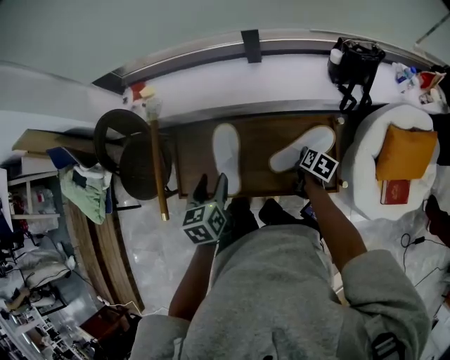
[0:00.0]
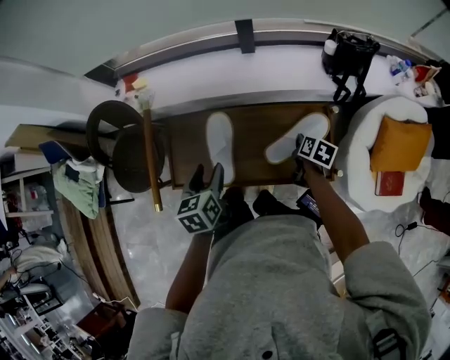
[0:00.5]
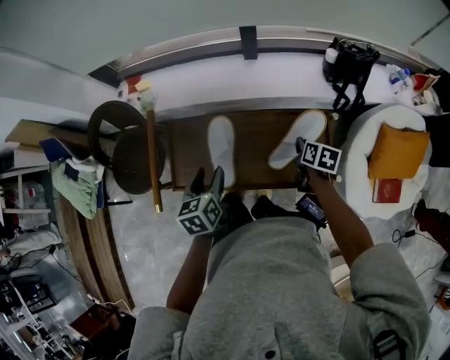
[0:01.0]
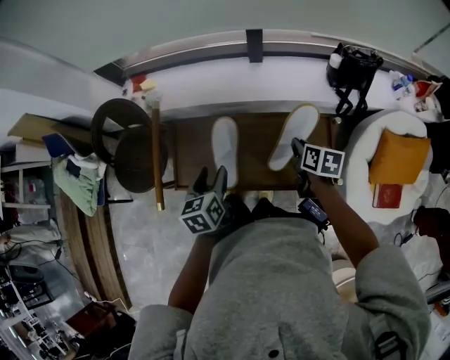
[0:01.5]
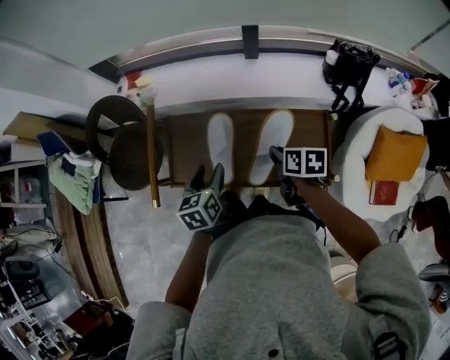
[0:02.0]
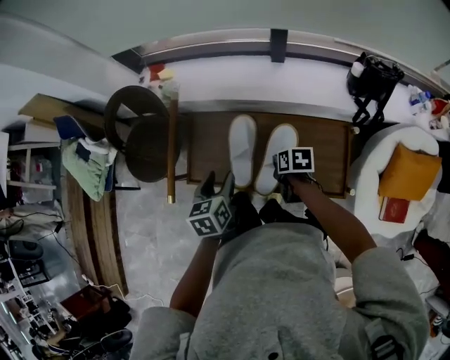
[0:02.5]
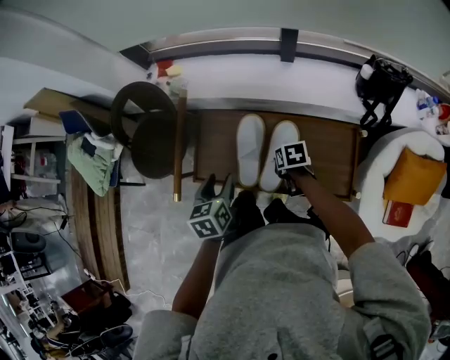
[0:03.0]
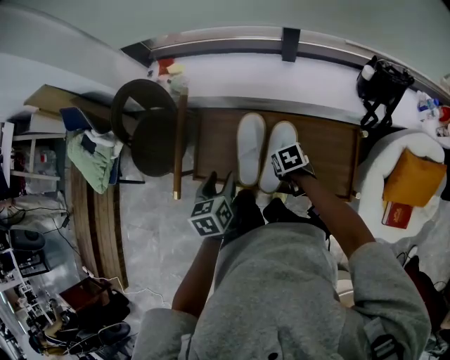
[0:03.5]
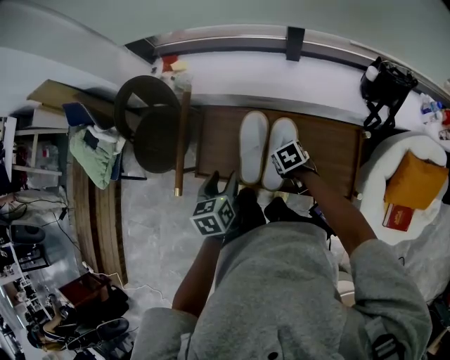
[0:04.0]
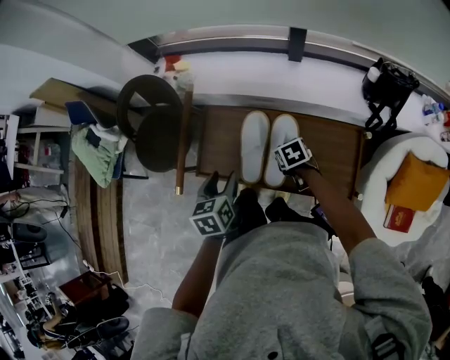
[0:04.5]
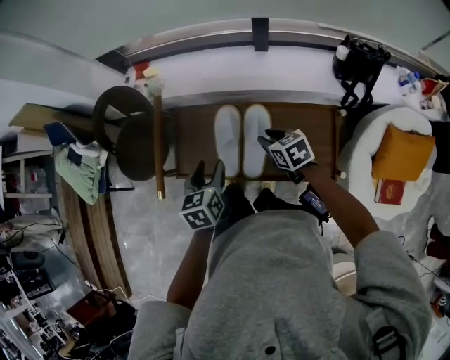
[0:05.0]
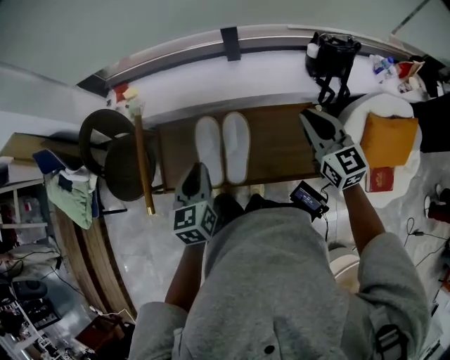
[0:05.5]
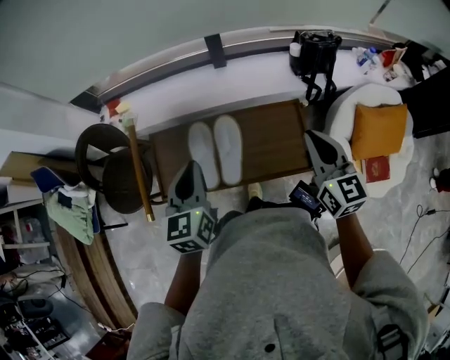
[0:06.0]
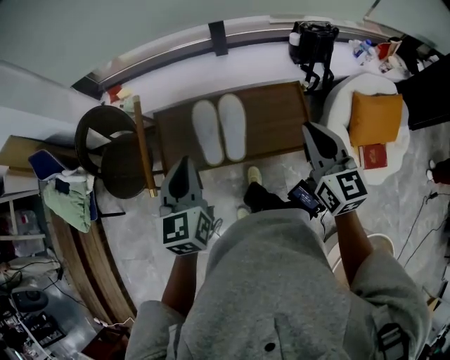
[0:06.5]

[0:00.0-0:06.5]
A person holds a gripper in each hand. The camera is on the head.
0:00.0 to 0:02.0: The right gripper heads to the left and upward, covering some 20 cm, and rotates roughly 30 degrees.
0:02.0 to 0:04.5: The right gripper shifts some 15 cm downward, forward and to the left, and changes its angle by approximately 40 degrees. The left gripper moves to the left, about 5 cm.
0:04.5 to 0:06.5: The left gripper shifts approximately 20 cm upward, rotates about 30 degrees, and closes; the right gripper travels upward by about 35 cm, and points its fingers approximately 50 degrees further upward.

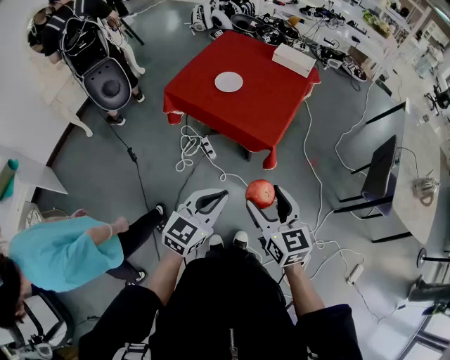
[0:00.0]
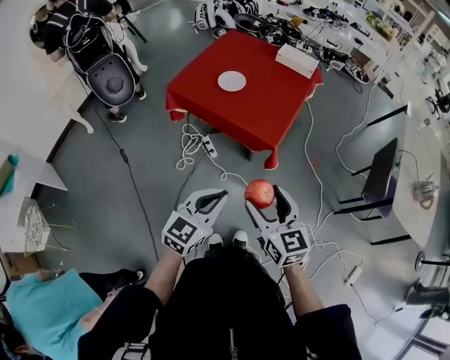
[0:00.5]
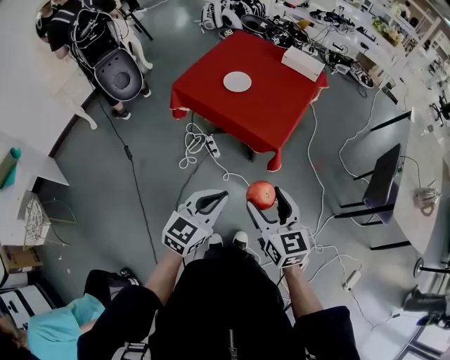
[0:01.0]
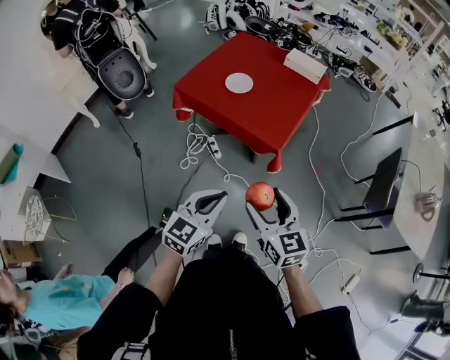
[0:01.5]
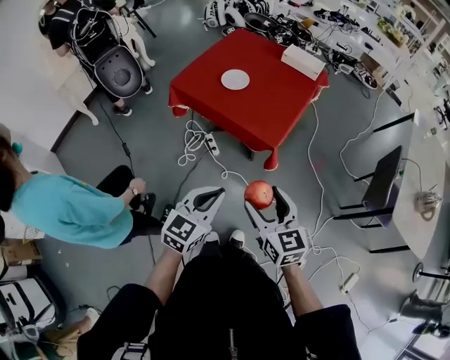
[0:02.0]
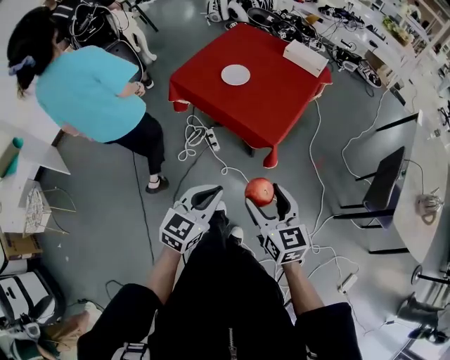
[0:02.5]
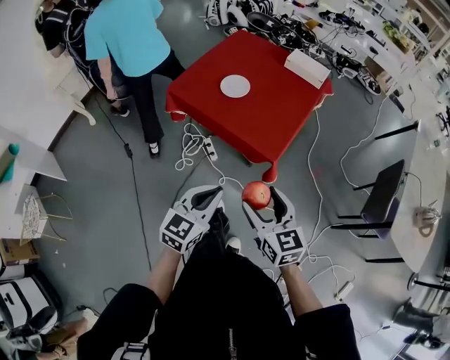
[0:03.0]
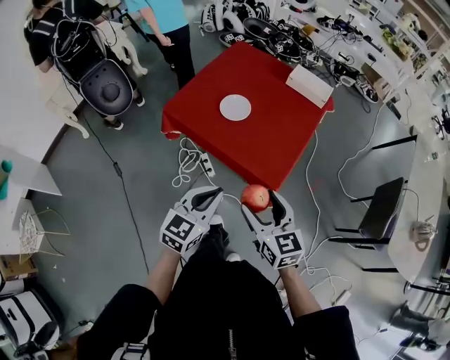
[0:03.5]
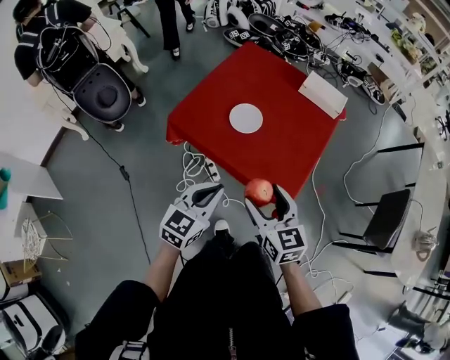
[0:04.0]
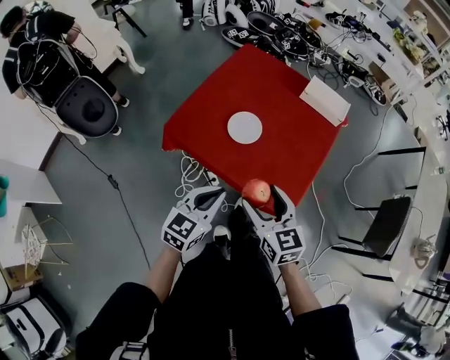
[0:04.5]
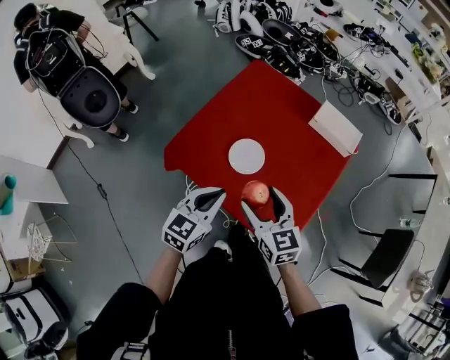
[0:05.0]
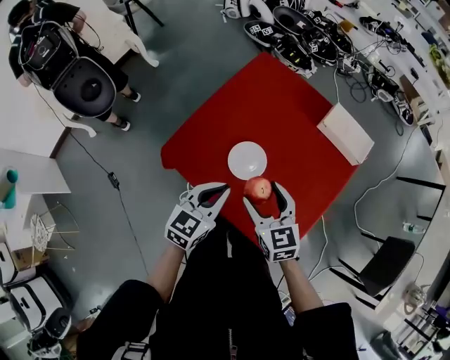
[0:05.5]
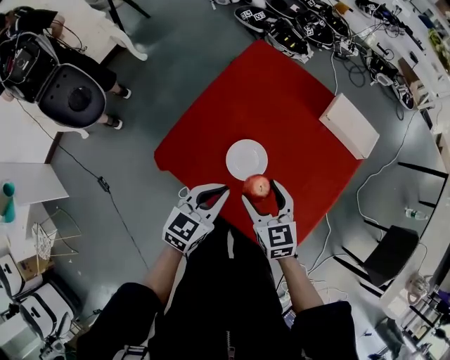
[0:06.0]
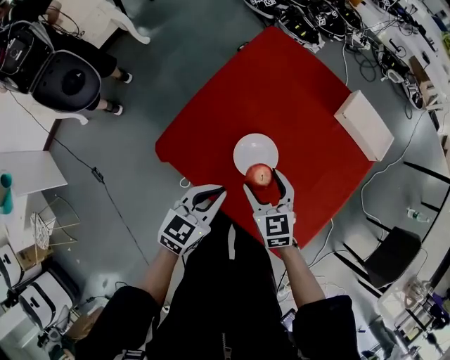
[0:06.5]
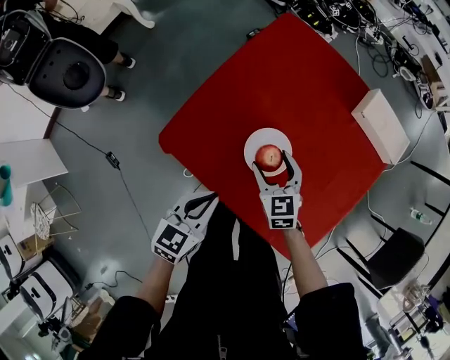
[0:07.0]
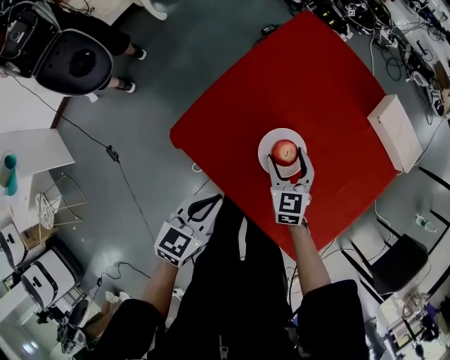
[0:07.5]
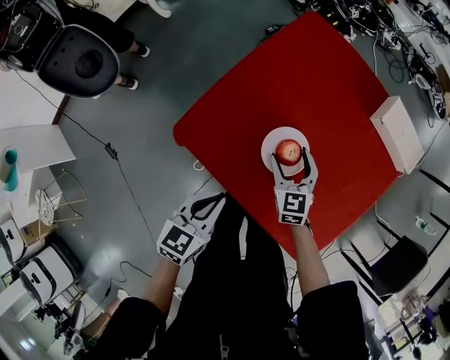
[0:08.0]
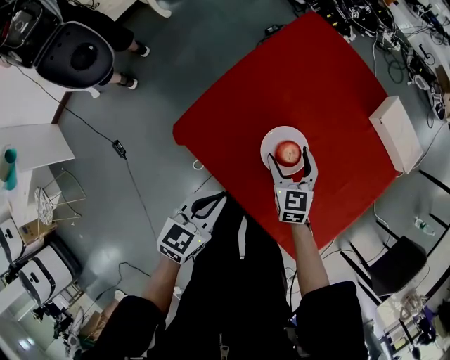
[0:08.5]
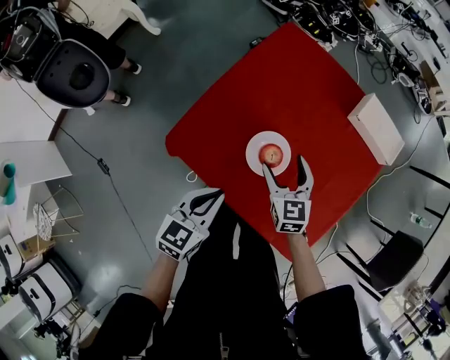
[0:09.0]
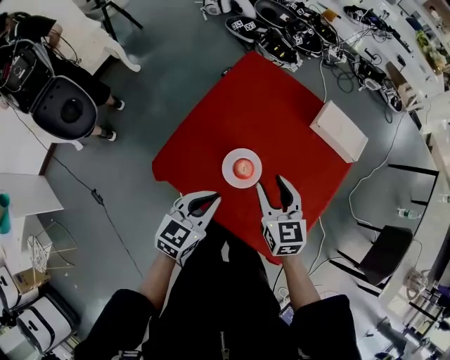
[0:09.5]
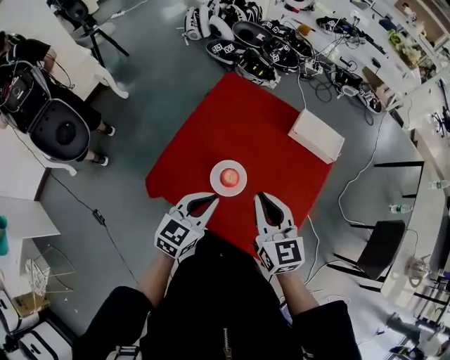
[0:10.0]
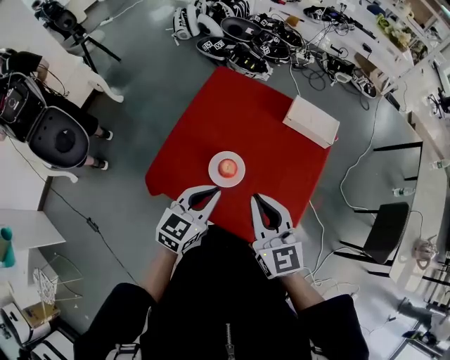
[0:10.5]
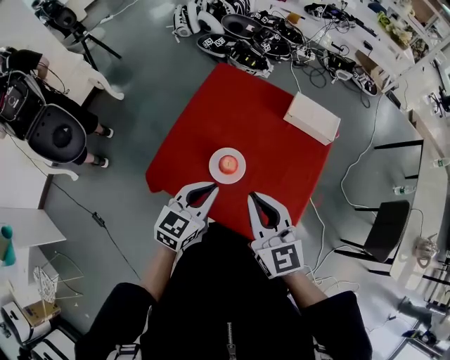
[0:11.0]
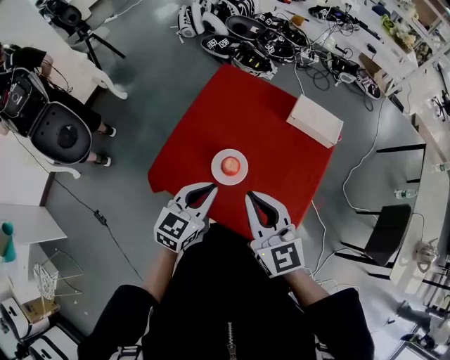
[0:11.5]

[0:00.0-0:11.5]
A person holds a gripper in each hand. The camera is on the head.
0:00.0 to 0:02.0: The grippers make only small movements.
0:02.0 to 0:04.0: The two grippers go about 30 cm forward.
0:04.0 to 0:06.0: The two grippers go some 30 cm forward.
0:06.0 to 0:07.5: The right gripper shifts approximately 15 cm downward and forward. The left gripper moves to the left and downward, roughly 10 cm.
0:07.5 to 0:09.5: The right gripper is displaced upward by approximately 20 cm. The left gripper shifts approximately 10 cm upward and to the right.
0:09.5 to 0:11.5: The right gripper is displaced upward and backward by about 15 cm, and closes its fingers. Meanwhile the left gripper travels upward by some 5 cm.

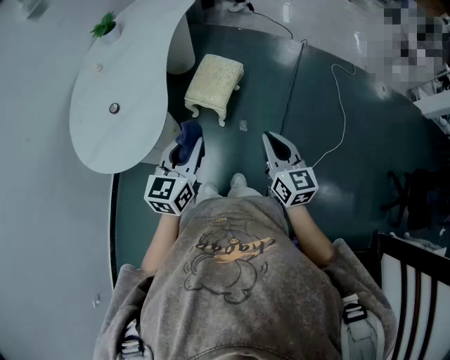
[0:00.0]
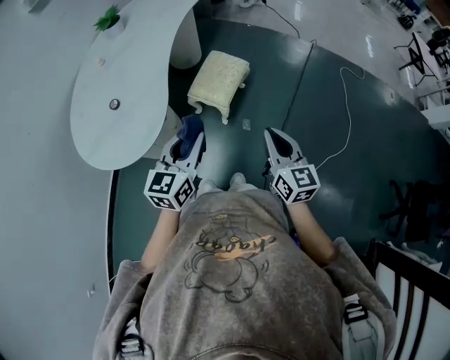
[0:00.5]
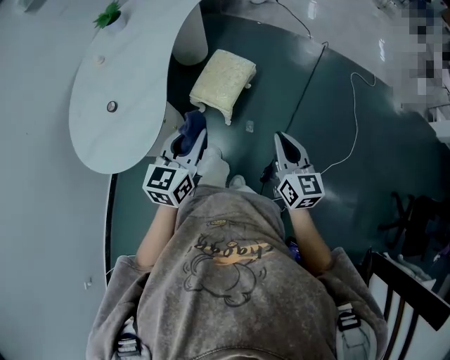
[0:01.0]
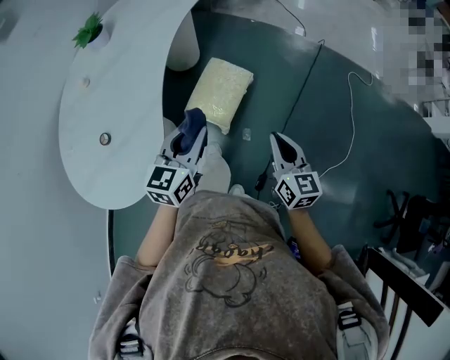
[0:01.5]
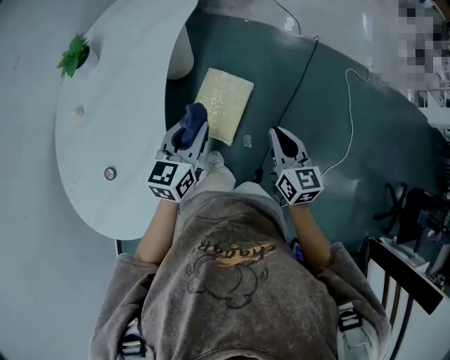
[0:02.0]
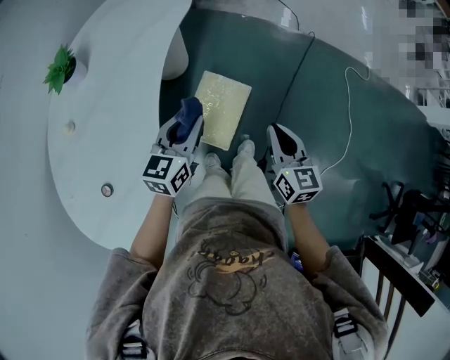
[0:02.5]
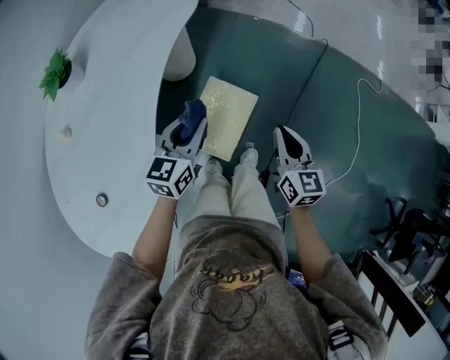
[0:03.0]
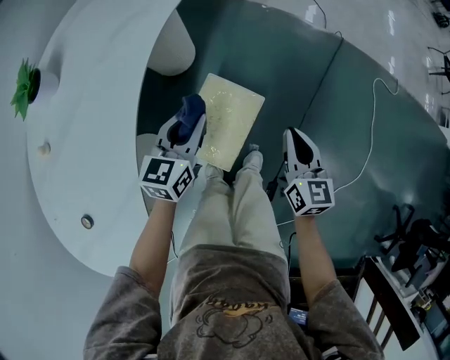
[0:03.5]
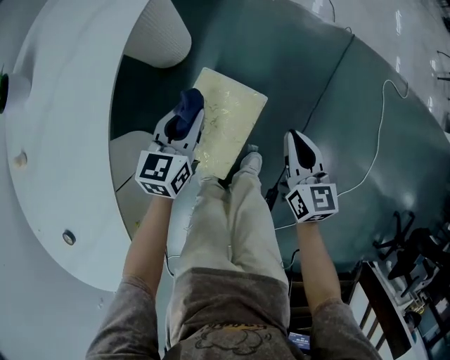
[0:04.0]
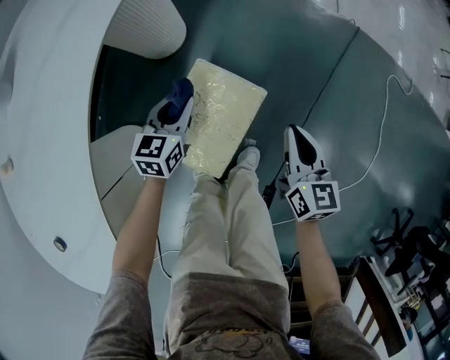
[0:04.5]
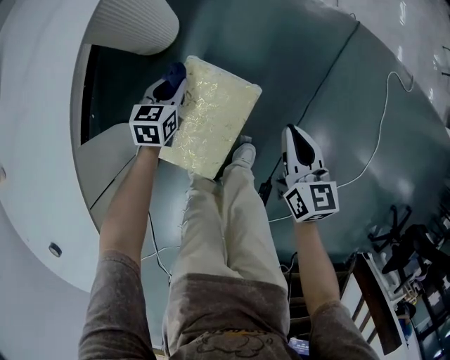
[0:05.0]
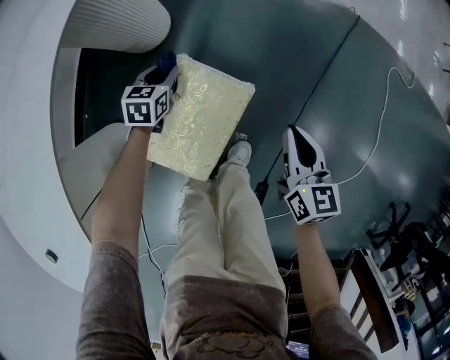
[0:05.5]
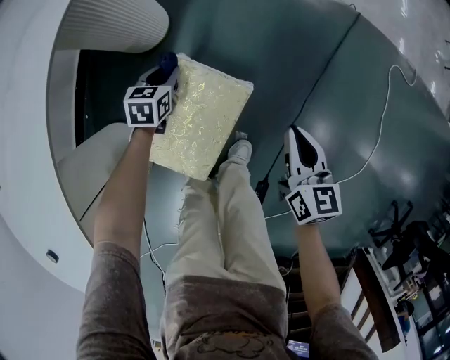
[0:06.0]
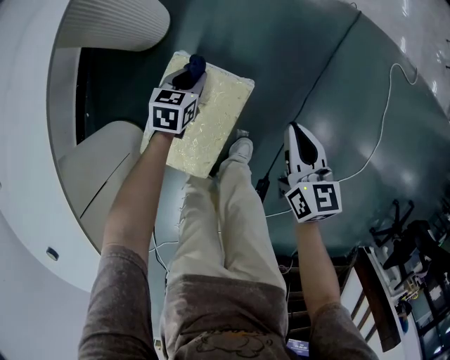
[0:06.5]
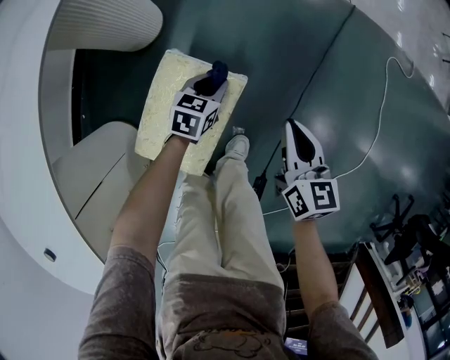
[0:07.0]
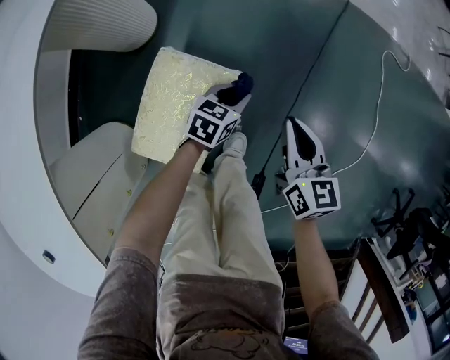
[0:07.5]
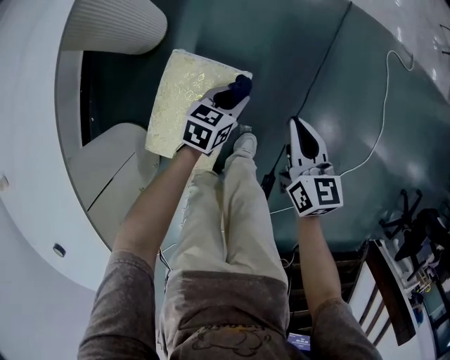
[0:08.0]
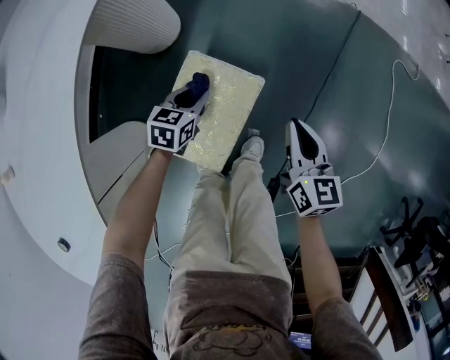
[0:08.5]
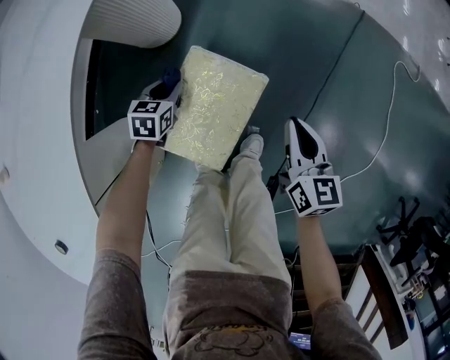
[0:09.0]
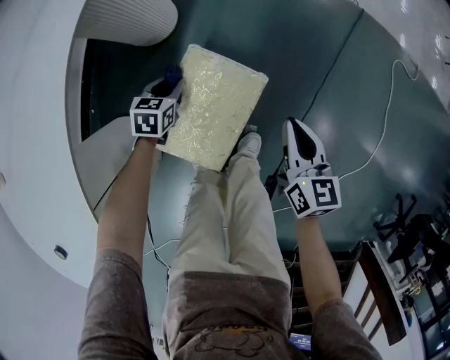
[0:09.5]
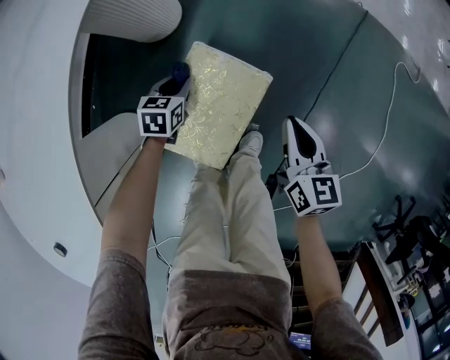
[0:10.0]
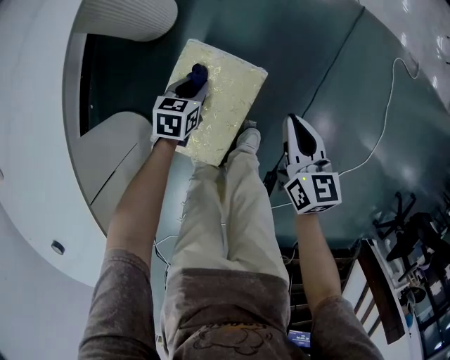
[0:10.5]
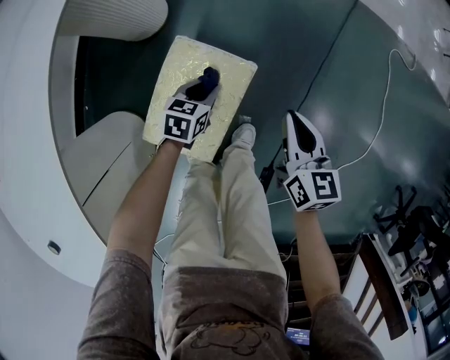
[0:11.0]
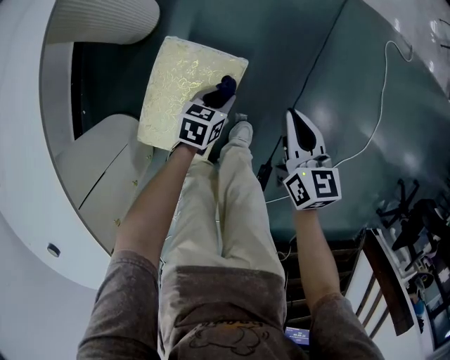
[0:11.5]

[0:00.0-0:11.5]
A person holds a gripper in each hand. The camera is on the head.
0:00.0 to 0:02.0: The two grippers go approximately 35 cm forward.
0:02.0 to 0:04.0: Both grippers move downward and forward, about 35 cm.
0:04.0 to 0:06.0: The right gripper travels downward and to the right by about 10 cm, while the left gripper heads downward and forward, covering some 25 cm, and swivels roughly 20 degrees.
0:06.0 to 0:07.5: The left gripper goes approximately 25 cm to the right, and swivels about 30 degrees.
0:07.5 to 0:09.5: The left gripper heads to the left, covering some 25 cm, and rotates some 20 degrees, while the right gripper goes roughly 5 cm to the left.
0:09.5 to 0:11.5: The right gripper moves to the right, approximately 5 cm; the left gripper travels to the right by about 20 cm.
